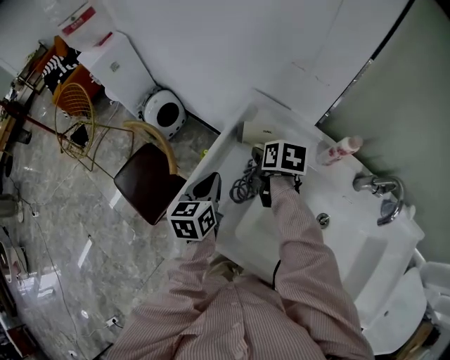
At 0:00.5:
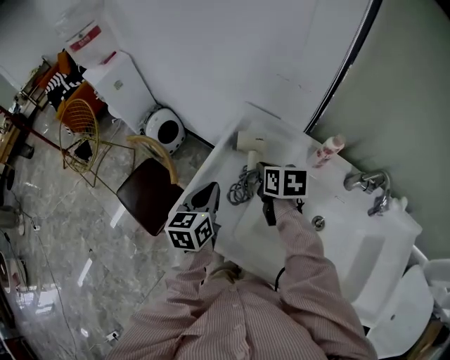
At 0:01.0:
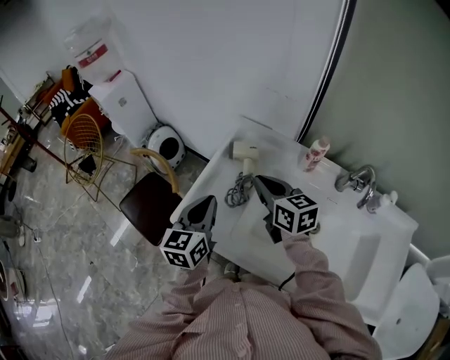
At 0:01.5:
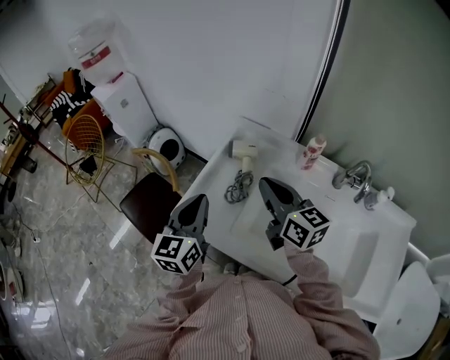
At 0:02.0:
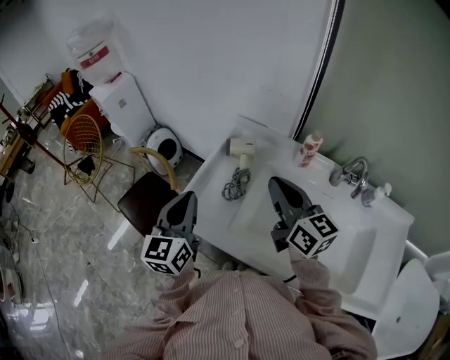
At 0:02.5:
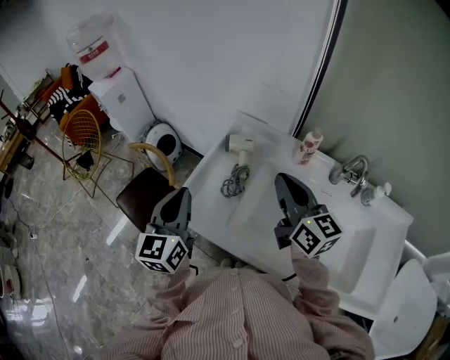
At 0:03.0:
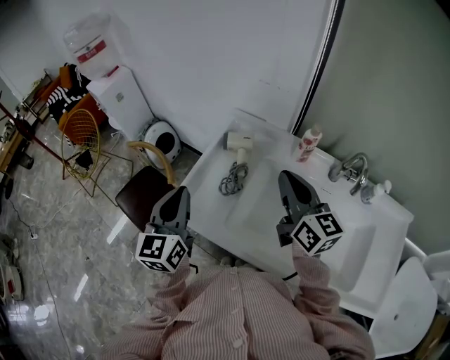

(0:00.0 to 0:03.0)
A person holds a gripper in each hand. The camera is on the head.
0:00.0 - 0:01.5: The two grippers go roughly 25 cm upward and backward. The left gripper rotates some 20 degrees, while the right gripper tilts its fingers some 50 degrees upward, and closes.
0:01.5 - 0:03.0: The right gripper goes about 5 cm to the right.

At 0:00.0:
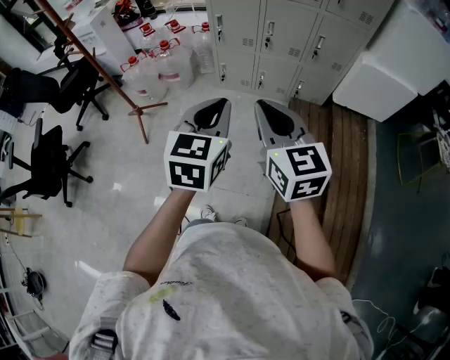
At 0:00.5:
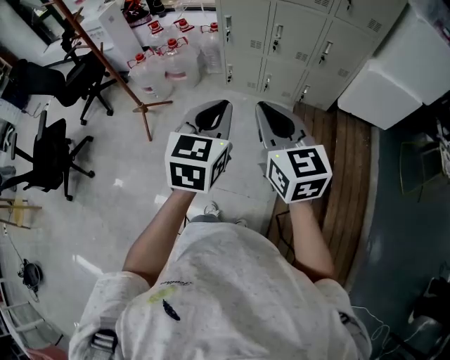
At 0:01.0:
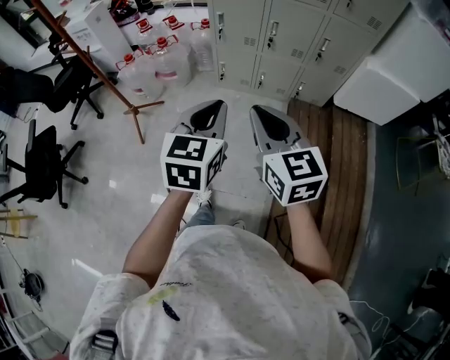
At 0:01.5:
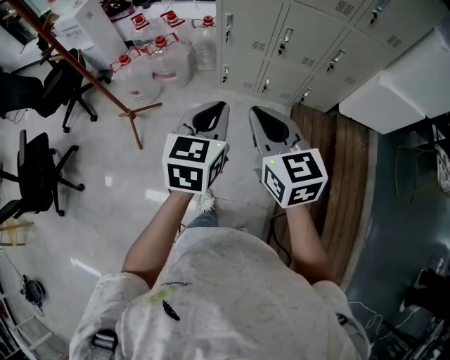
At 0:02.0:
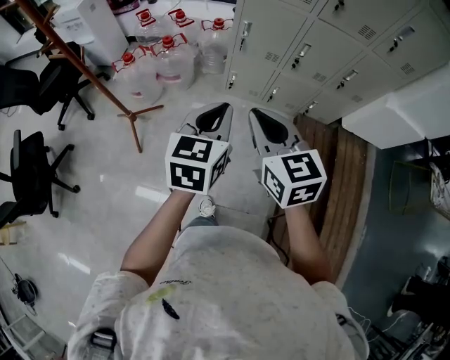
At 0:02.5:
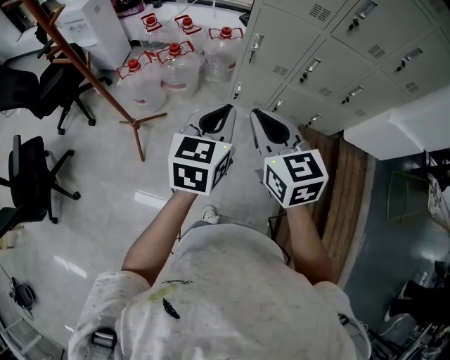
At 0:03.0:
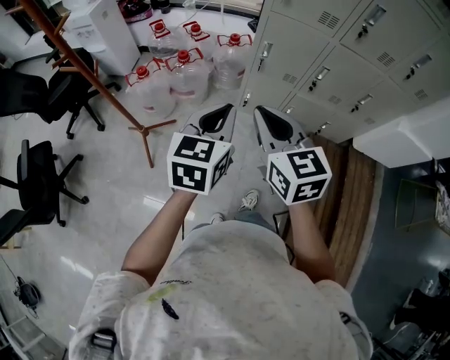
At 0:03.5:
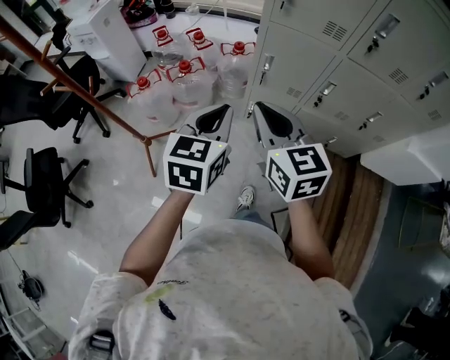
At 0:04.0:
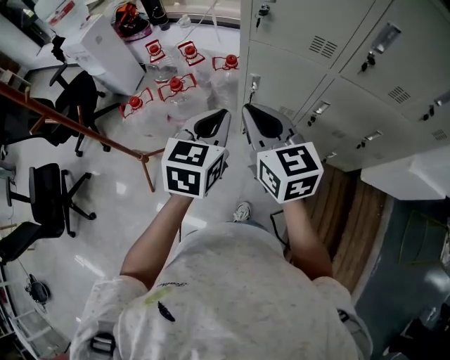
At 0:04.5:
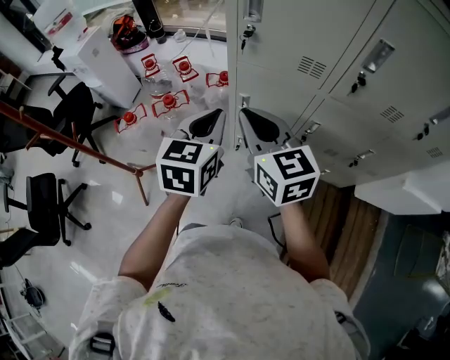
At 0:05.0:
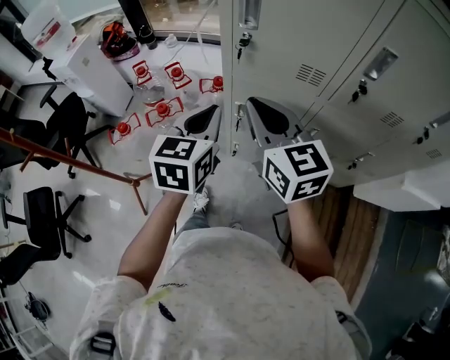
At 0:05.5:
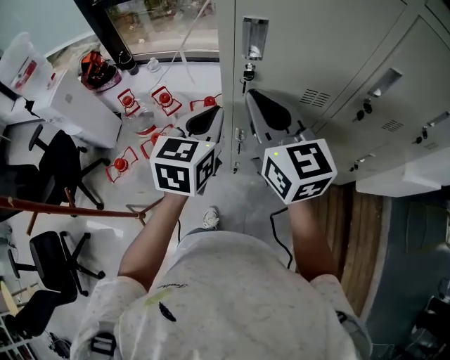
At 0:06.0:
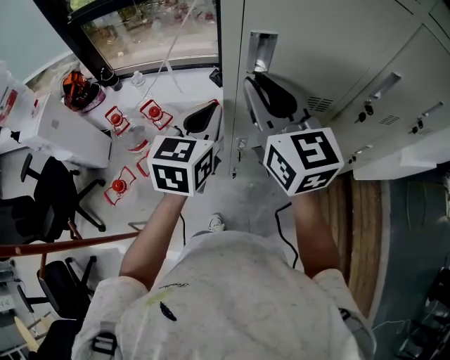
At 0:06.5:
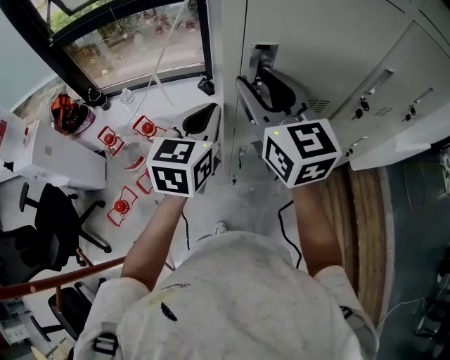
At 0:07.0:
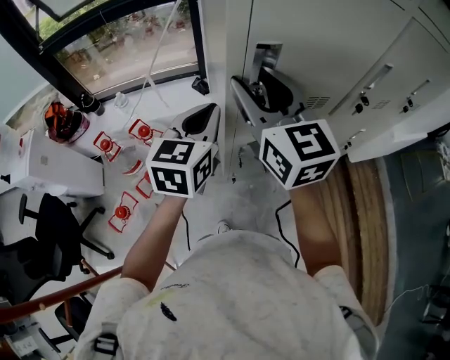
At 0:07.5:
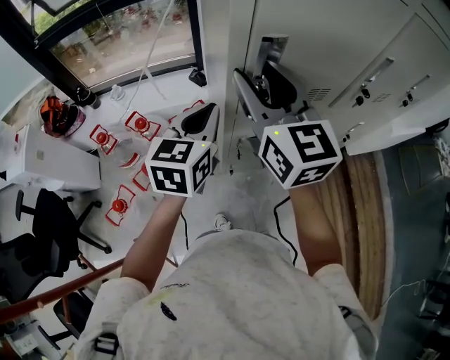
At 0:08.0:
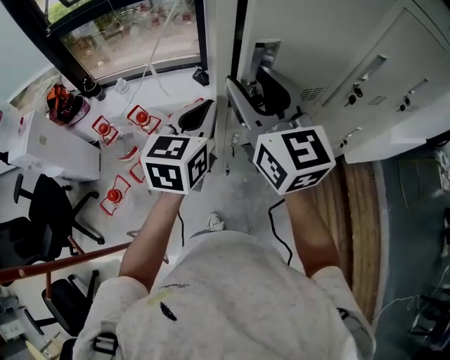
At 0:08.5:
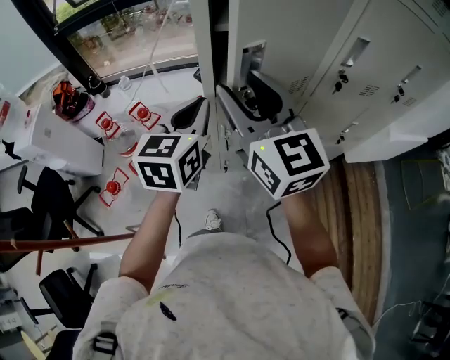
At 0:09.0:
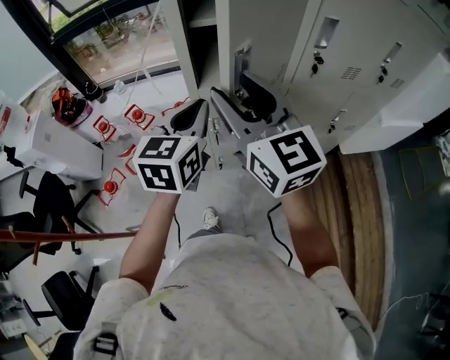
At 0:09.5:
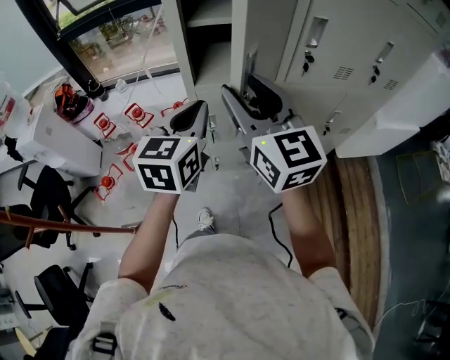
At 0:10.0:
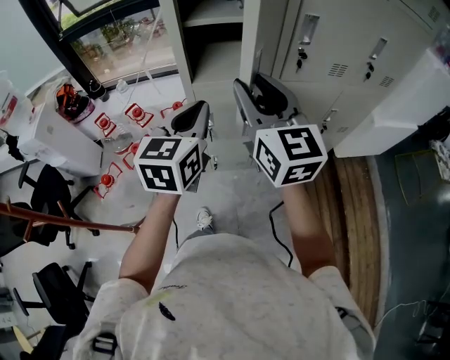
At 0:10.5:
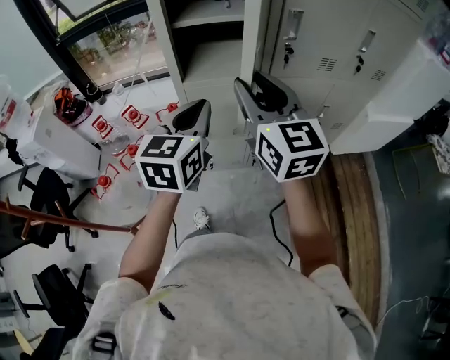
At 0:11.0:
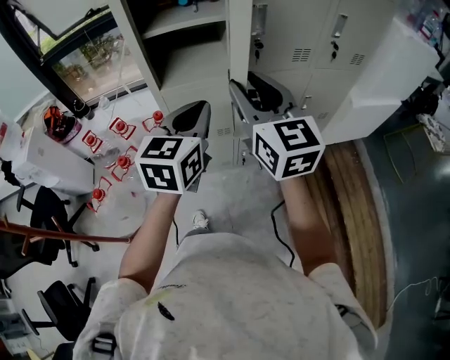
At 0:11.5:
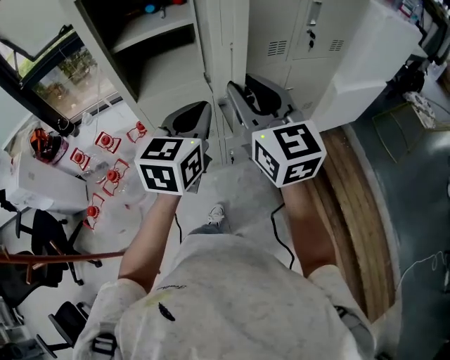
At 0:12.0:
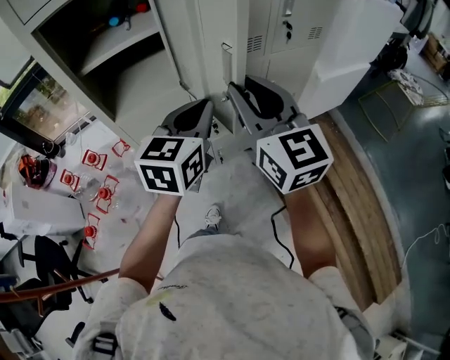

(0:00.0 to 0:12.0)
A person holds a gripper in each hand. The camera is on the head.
0:00.0 - 0:02.0: The two grippers go roughly 30 cm forward and to the left.
0:02.0 - 0:04.0: Both grippers move forward, approximately 30 cm.
0:04.0 - 0:06.0: The right gripper goes some 25 cm forward and upward, and rotates roughly 30 degrees; the left gripper is displaced forward by roughly 25 cm.
0:06.0 - 0:08.0: The right gripper opens up.
0:08.0 - 0:10.0: The grippers both shift backward and to the right by approximately 20 cm.
0:10.0 - 0:12.0: The grippers both shift to the right by some 20 cm. The left gripper swivels some 20 degrees.

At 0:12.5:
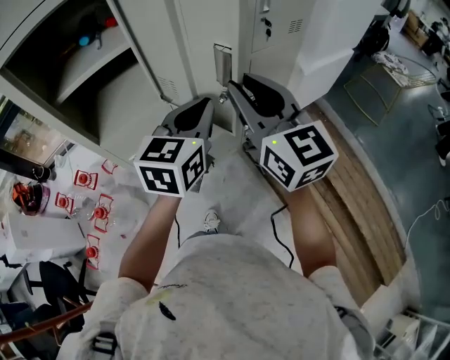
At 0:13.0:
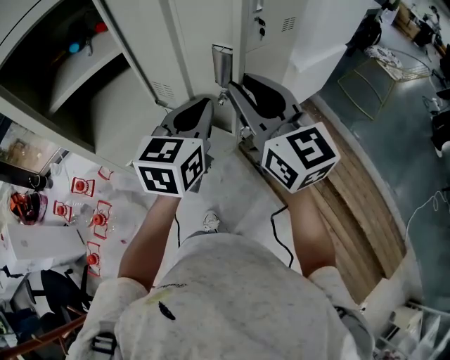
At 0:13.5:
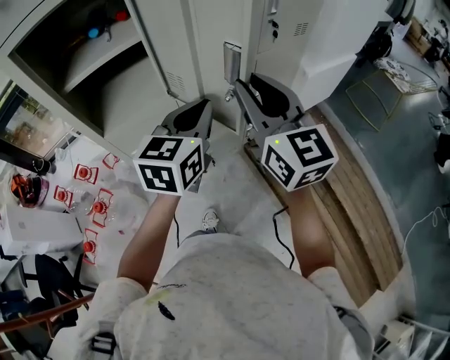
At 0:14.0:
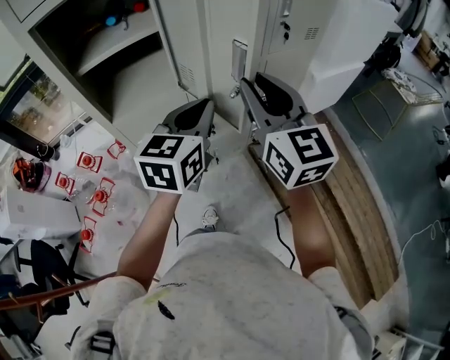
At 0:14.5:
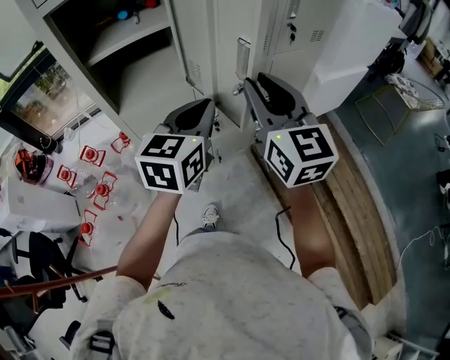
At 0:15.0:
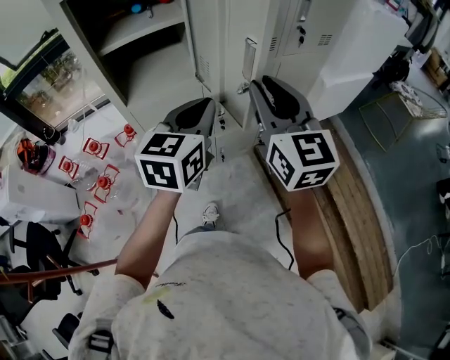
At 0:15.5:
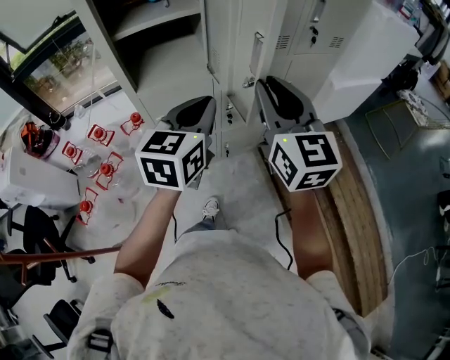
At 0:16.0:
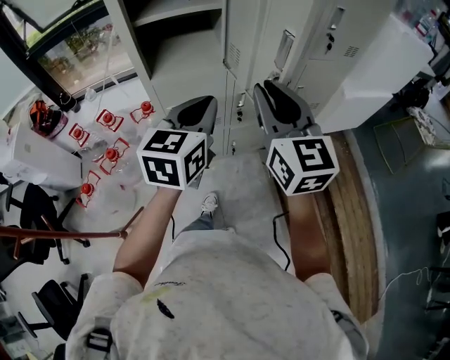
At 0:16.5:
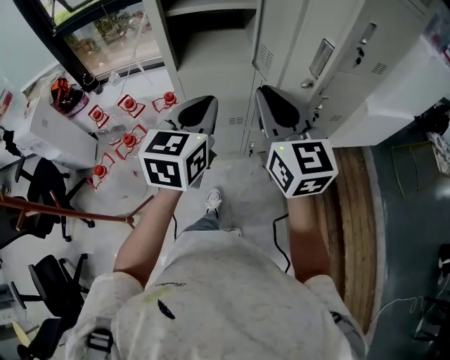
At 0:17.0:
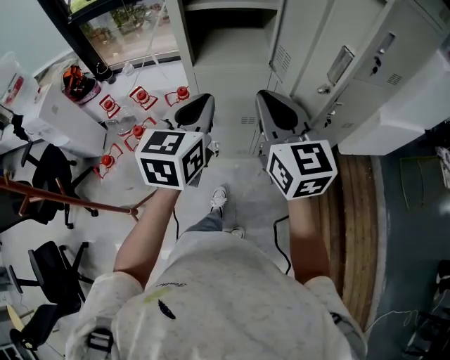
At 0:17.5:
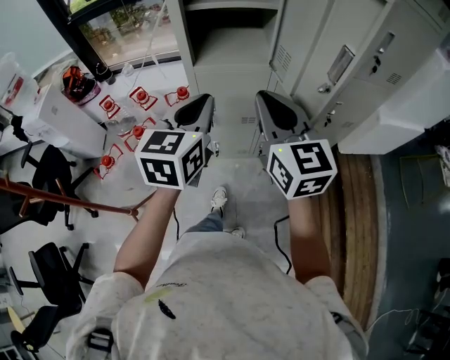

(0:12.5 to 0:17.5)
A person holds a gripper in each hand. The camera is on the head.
0:12.5 - 0:15.0: The left gripper moves to the left and backward, about 10 cm. The right gripper travels backward by approximately 5 cm.
0:15.0 - 0:17.5: Both grippers travel together to the left, about 15 cm. The right gripper turns by about 20 degrees. The left gripper rotates roughly 20 degrees.

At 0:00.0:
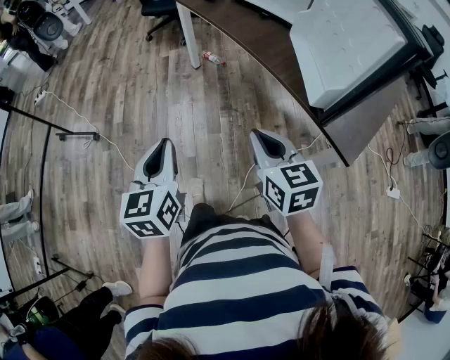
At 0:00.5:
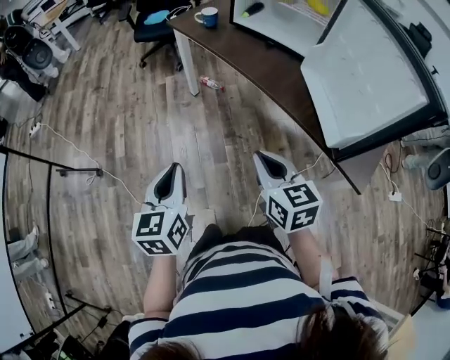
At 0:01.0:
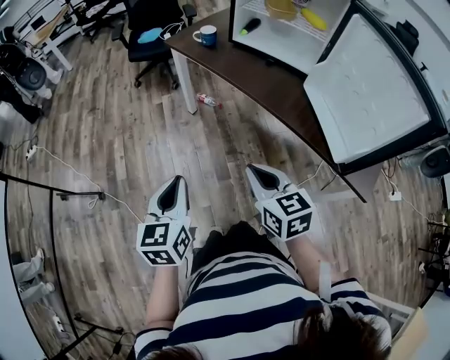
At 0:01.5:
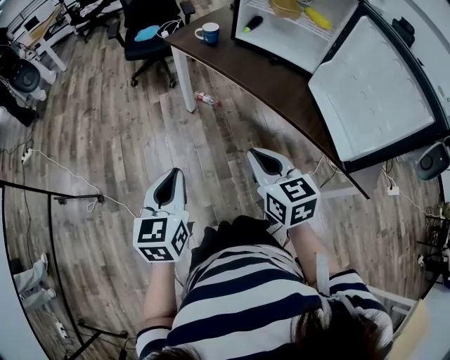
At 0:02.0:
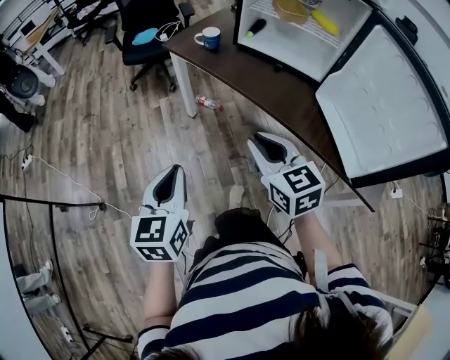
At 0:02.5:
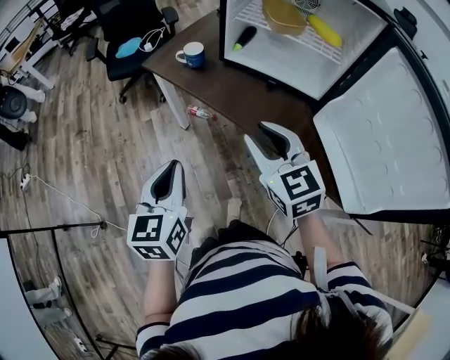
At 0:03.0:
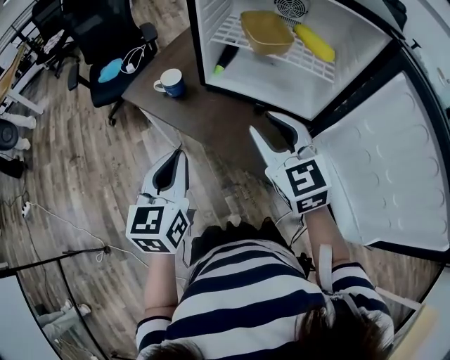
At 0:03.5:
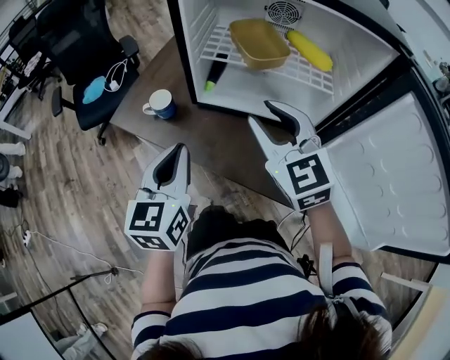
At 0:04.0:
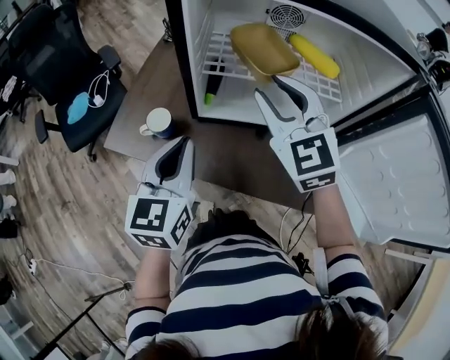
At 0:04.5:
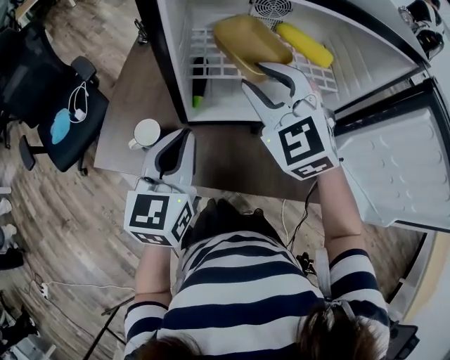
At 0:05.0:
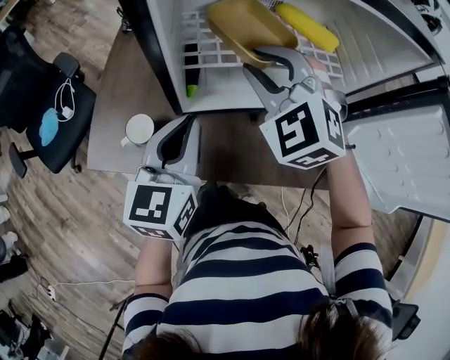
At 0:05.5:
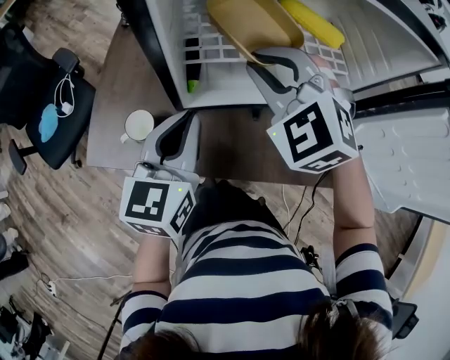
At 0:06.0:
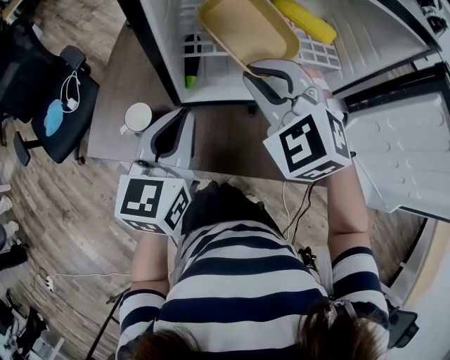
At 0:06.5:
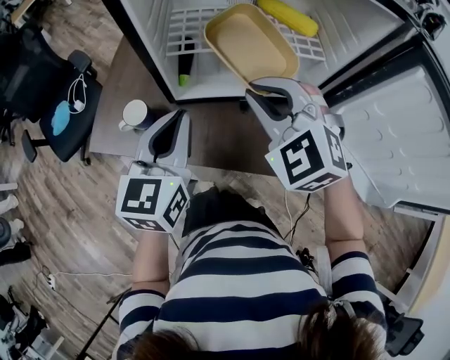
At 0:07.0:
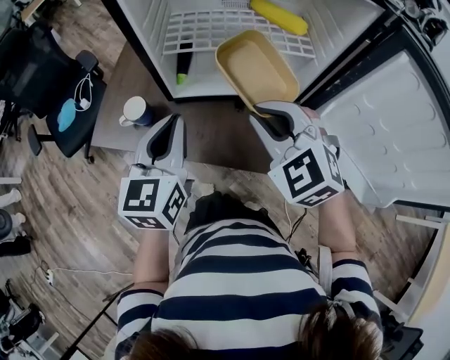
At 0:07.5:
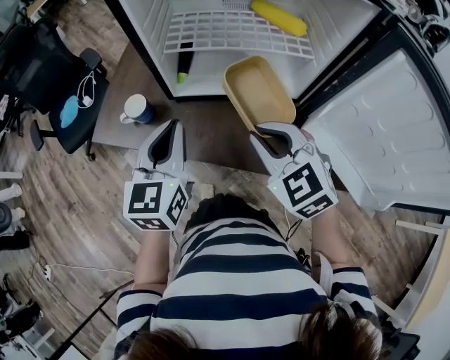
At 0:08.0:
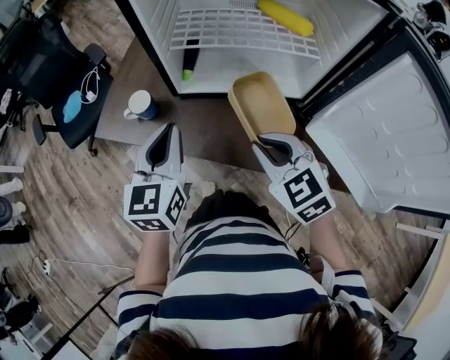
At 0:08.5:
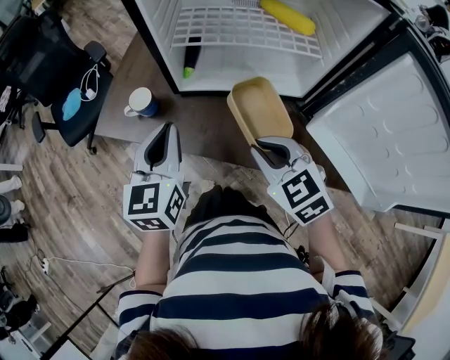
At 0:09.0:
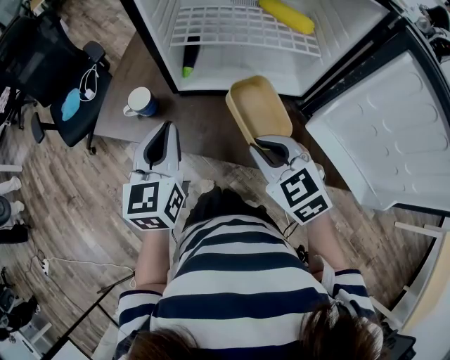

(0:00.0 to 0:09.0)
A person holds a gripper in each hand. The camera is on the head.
0:00.0 - 0:02.0: Both grippers move forward and to the left, some 30 cm.
0:02.0 - 0:04.5: Both grippers are carried some 50 cm. The left gripper changes its angle by approximately 40 degrees. The right gripper turns by some 40 degrees.
0:04.5 - 0:07.0: The right gripper moves backward and to the right, some 15 cm, and closes; the left gripper moves backward, roughly 5 cm.
0:07.0 - 0:09.0: The right gripper is displaced downward and backward by about 10 cm, and turns by roughly 20 degrees.
